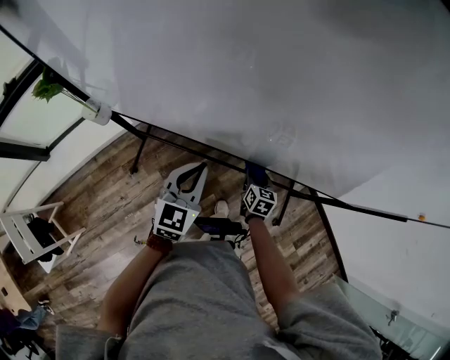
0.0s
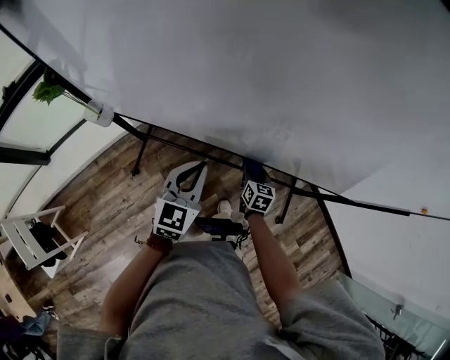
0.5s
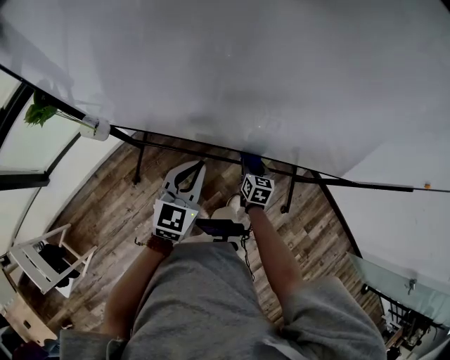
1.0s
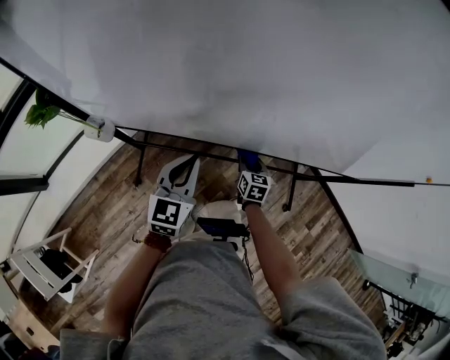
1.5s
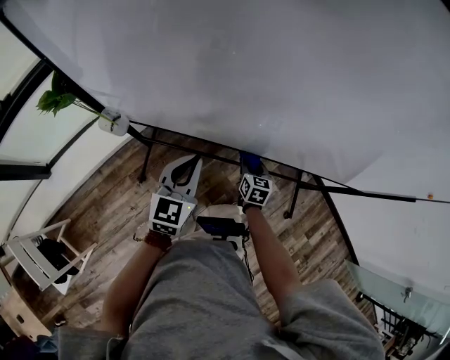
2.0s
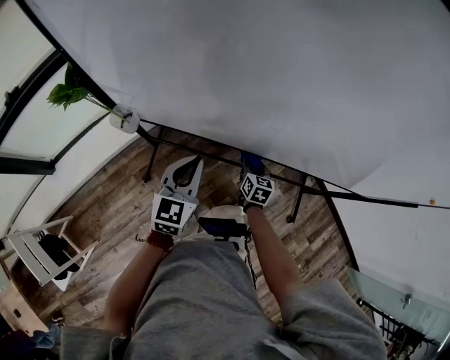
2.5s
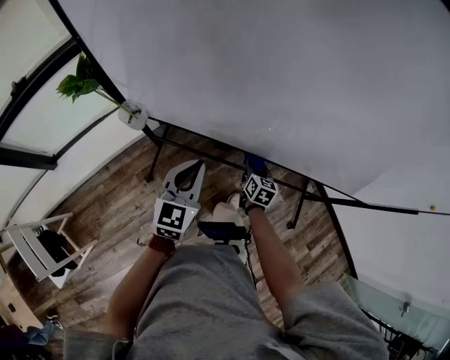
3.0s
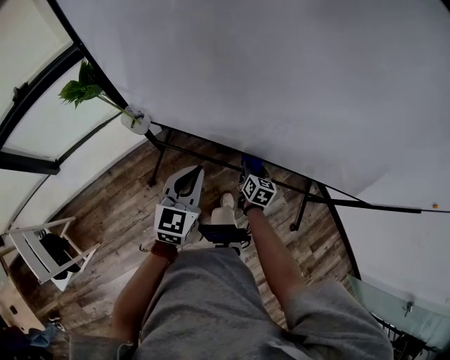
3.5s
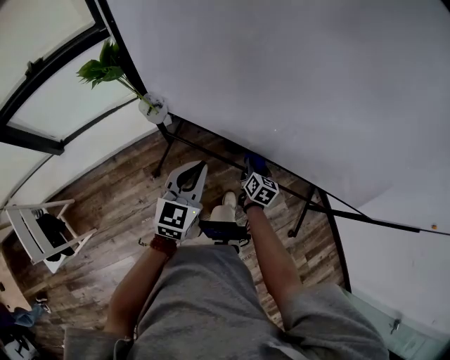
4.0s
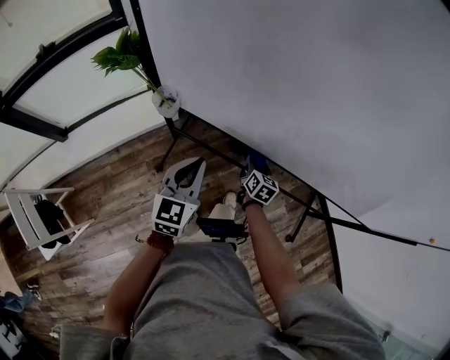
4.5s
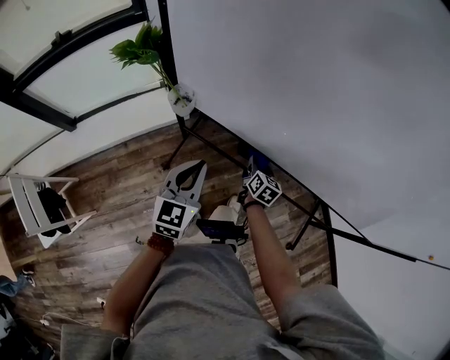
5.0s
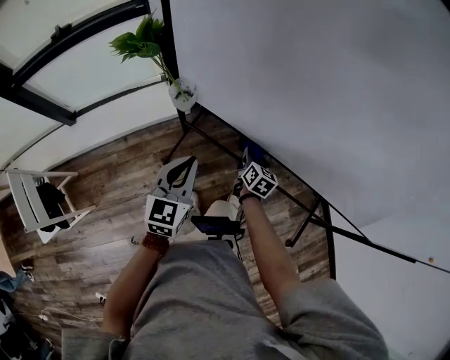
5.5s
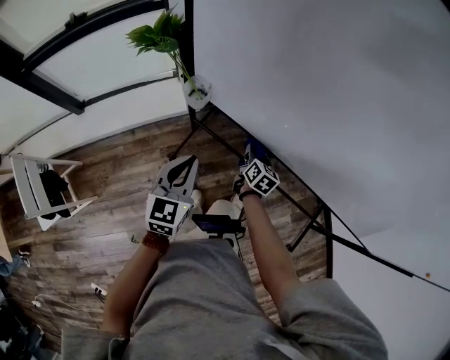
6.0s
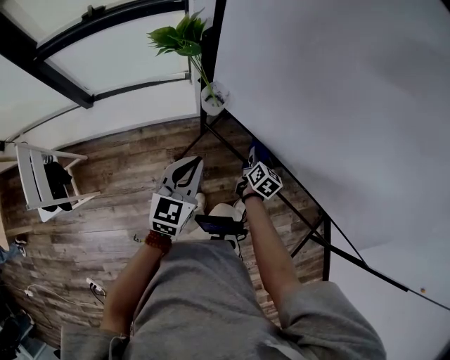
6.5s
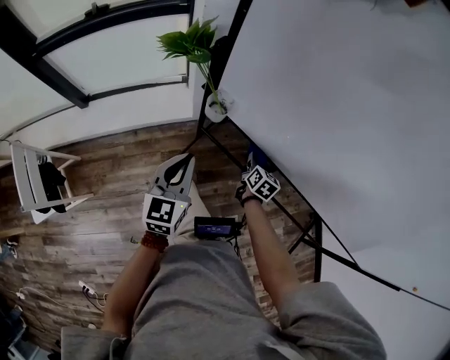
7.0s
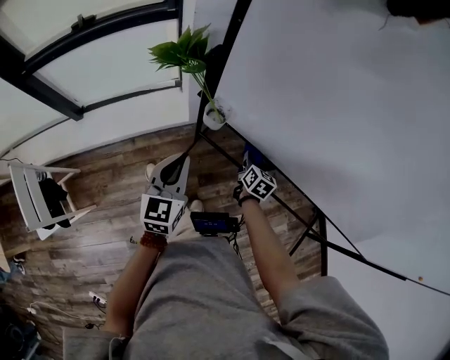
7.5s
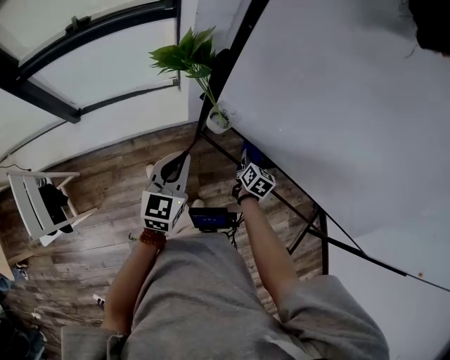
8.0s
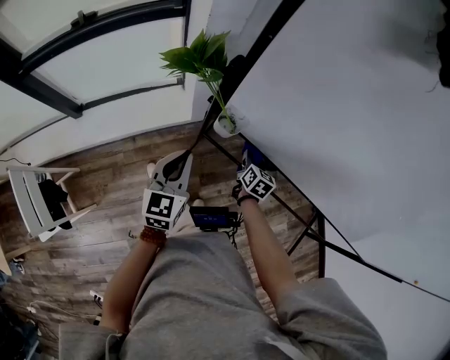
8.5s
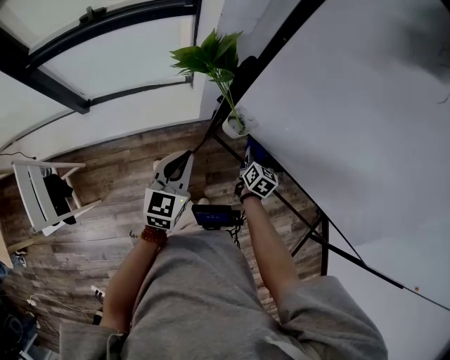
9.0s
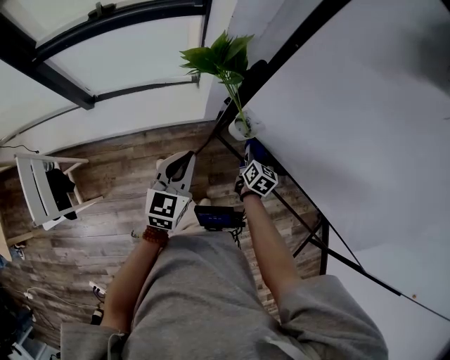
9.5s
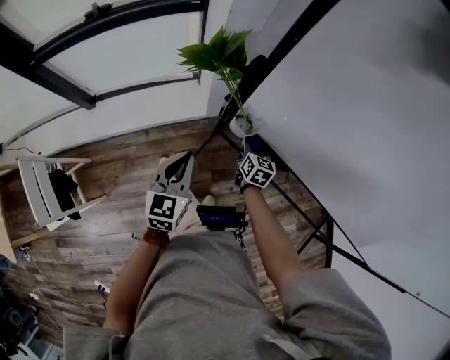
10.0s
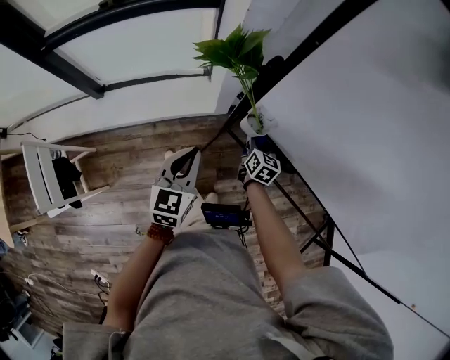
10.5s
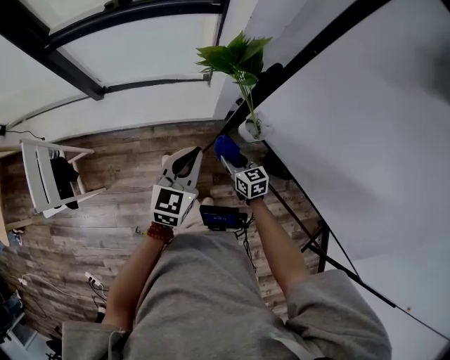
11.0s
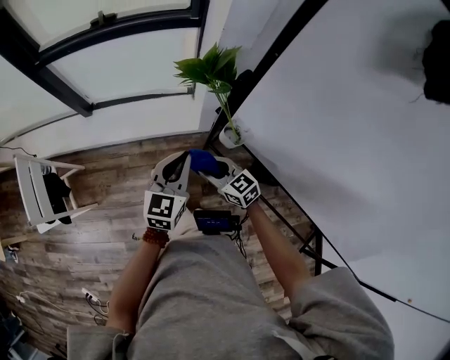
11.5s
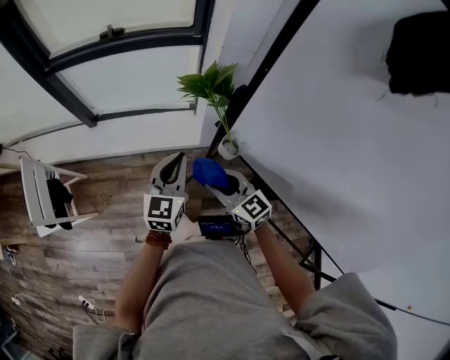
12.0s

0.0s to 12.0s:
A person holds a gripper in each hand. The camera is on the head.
0.0s to 2.0s: The two grippers go approximately 10 cm to the left.
2.0s to 4.0s: Both grippers move to the left, approximately 10 cm.
4.0s to 6.0s: Both grippers travel together to the left, some 10 cm.
6.0s to 8.0s: The left gripper is displaced to the left and forward by roughly 10 cm; the right gripper heads to the left, covering about 10 cm.
8.0s to 10.0s: The right gripper shifts about 10 cm to the left. The left gripper ends up roughly 5 cm from where it was.
10.0s to 12.0s: The right gripper shifts approximately 20 cm upward, and changes its angle by some 60 degrees. Meanwhile the left gripper shifts approximately 5 cm upward.

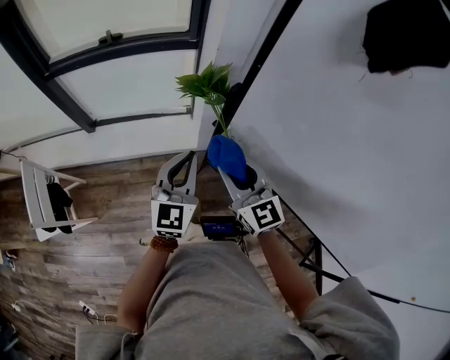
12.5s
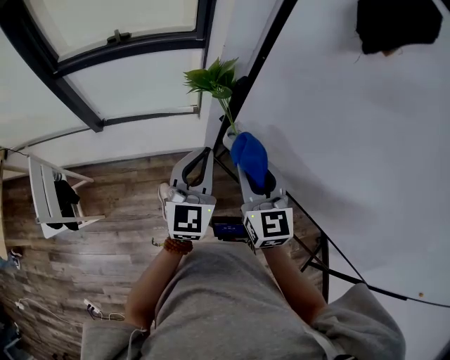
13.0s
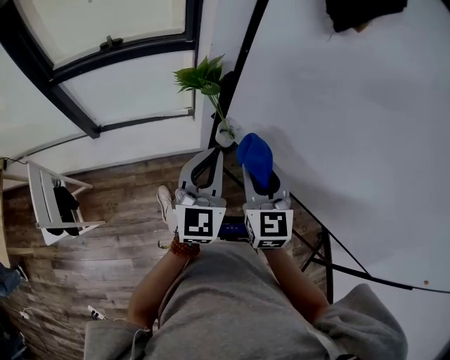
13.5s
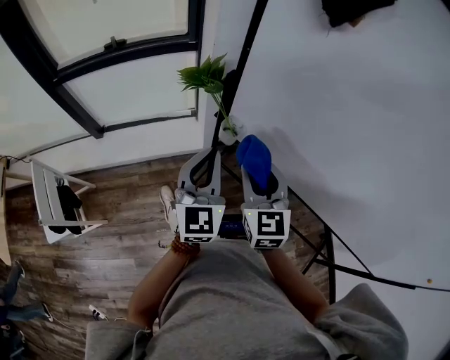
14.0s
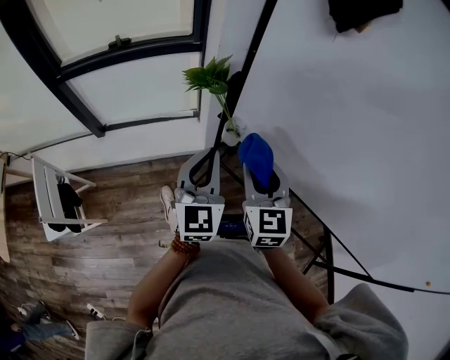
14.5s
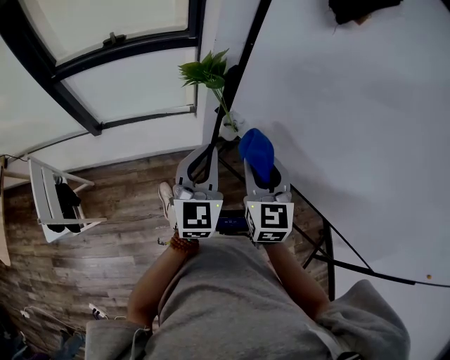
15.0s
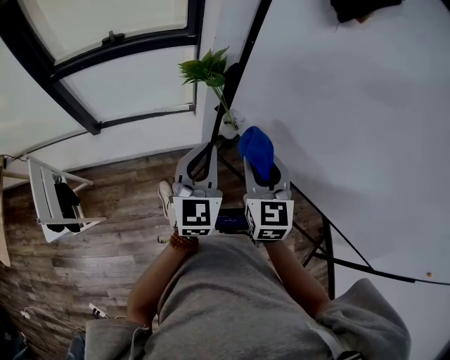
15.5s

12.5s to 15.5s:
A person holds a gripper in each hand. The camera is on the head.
12.5s to 14.0s: The right gripper shifts roughly 10 cm backward and to the right, and changes its angle by some 30 degrees, while the left gripper is displaced backward and upward by approximately 10 cm.
14.0s to 15.5s: The grippers move only a little.

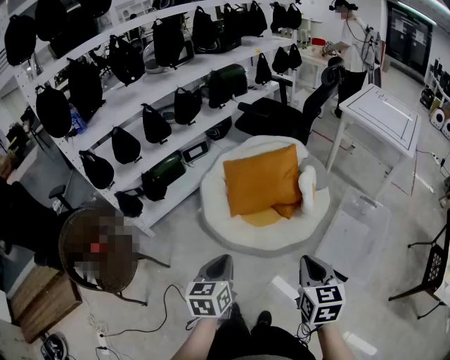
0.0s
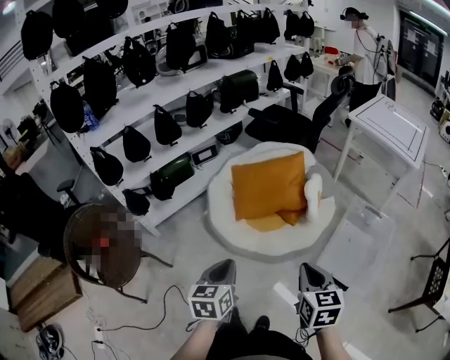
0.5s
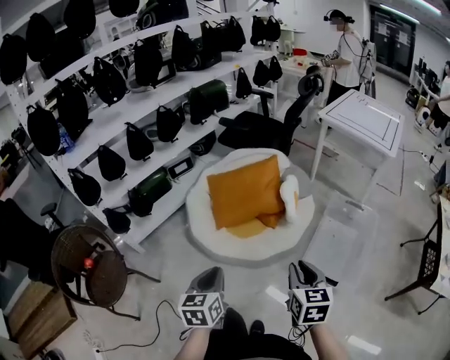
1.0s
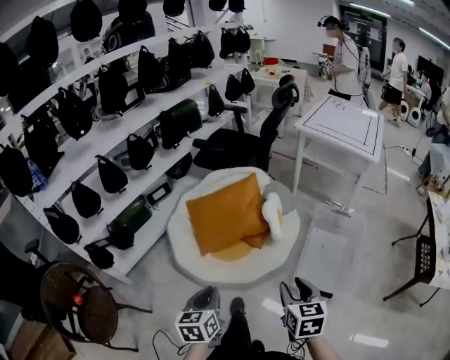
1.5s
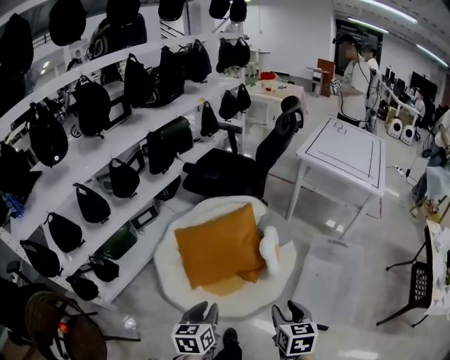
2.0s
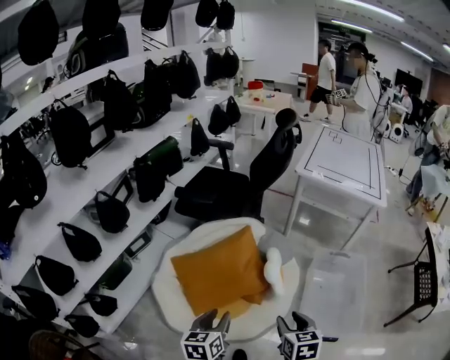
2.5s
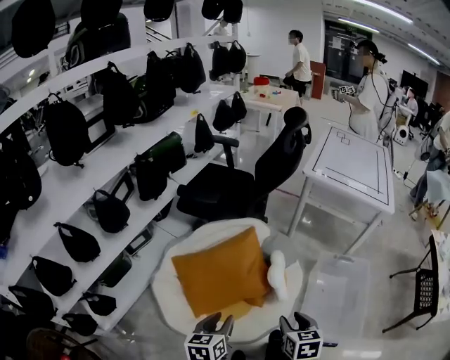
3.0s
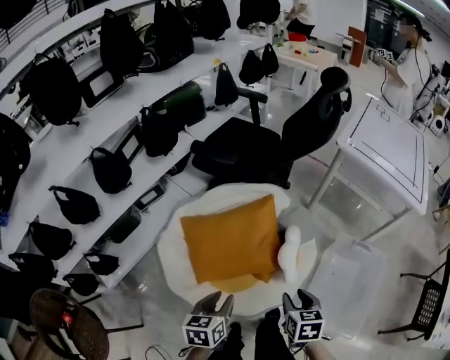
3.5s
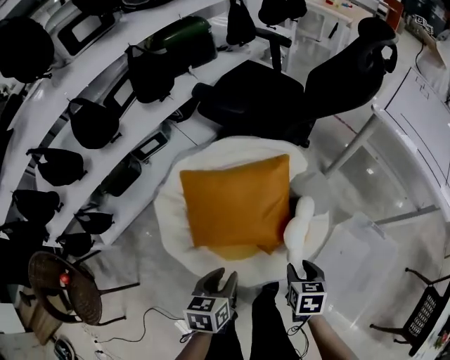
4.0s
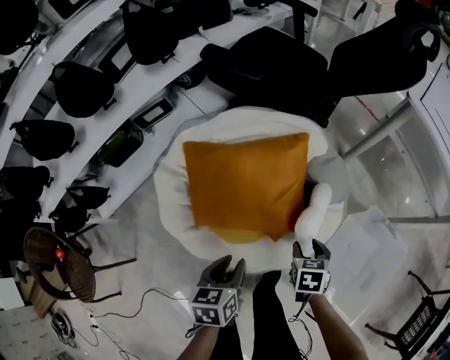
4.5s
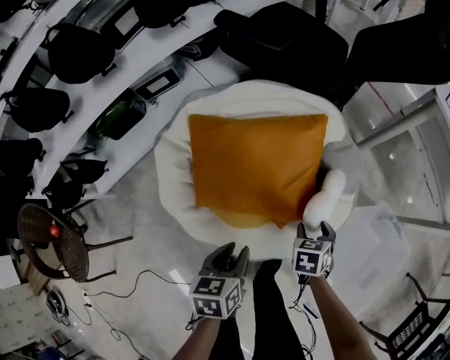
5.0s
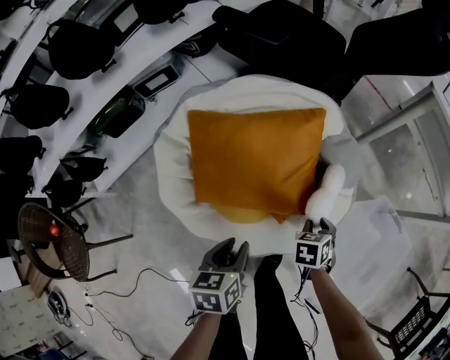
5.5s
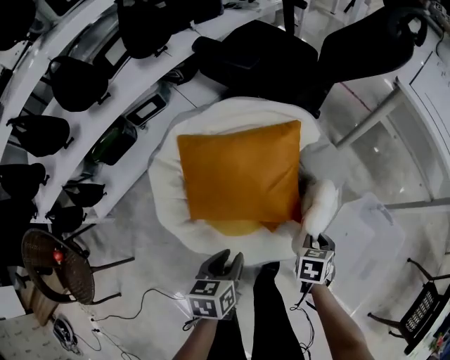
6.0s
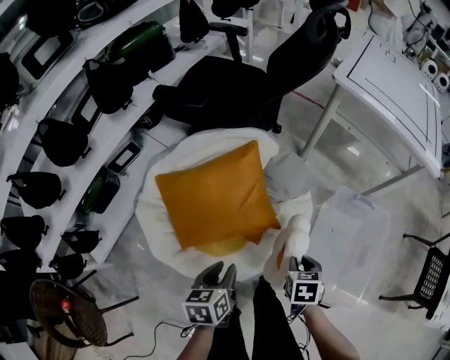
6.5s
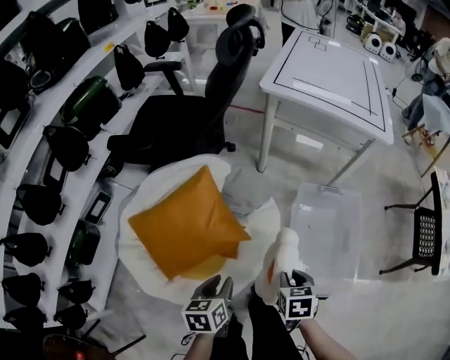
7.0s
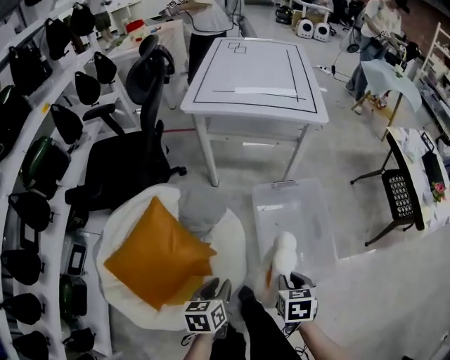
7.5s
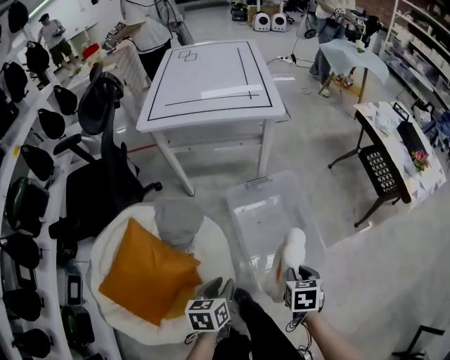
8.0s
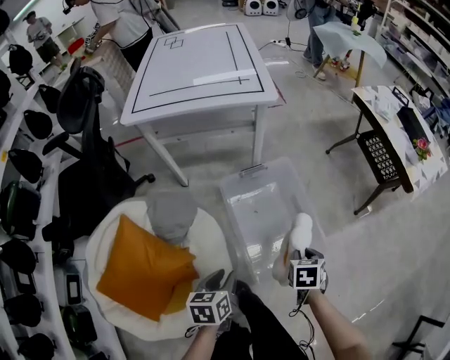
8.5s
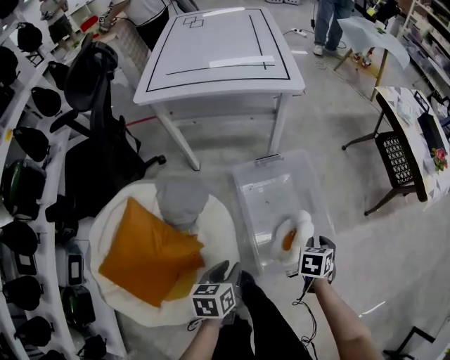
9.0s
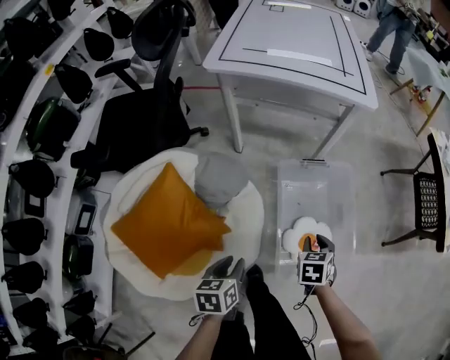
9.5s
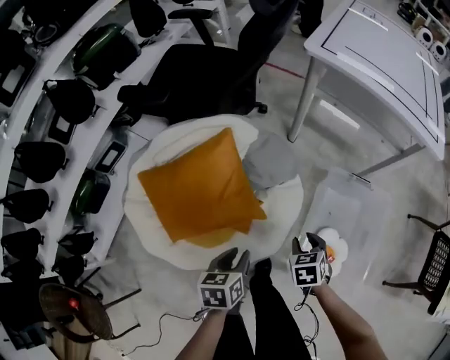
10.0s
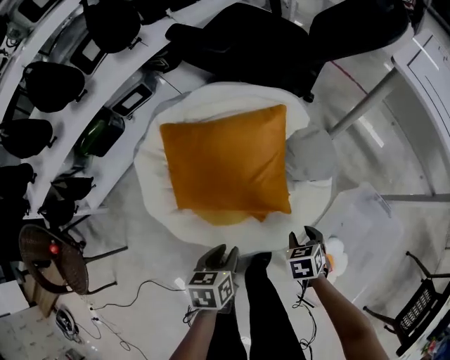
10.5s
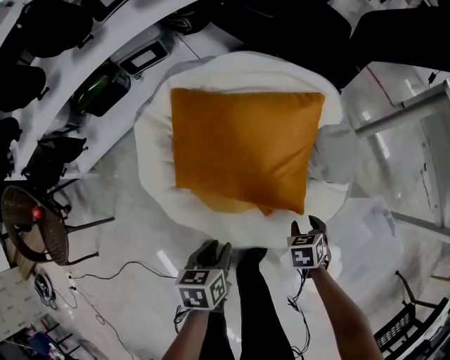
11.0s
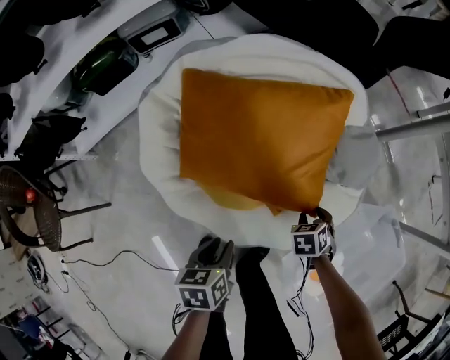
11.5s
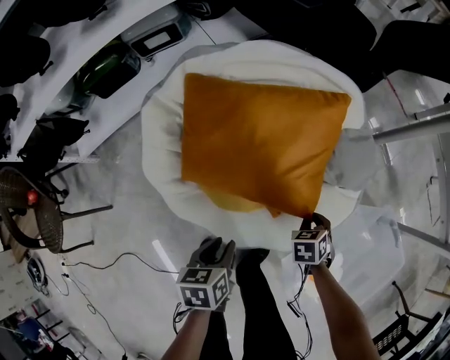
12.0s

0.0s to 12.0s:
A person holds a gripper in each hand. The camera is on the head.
0.0s to 2.0s: The left gripper is displaced forward by roughly 20 cm, while the right gripper goes roughly 20 cm forward and downward, and opens.
2.0s to 4.0s: The grippers both shift forward and downward by about 30 cm. The right gripper swivels some 20 degrees.
4.0s to 6.0s: Both grippers move downward, some 10 cm. The right gripper closes its fingers.
6.0s to 8.0s: The left gripper ends up roughly 35 cm from where it was, and rotates about 50 degrees. Meanwhile the right gripper shifts by approximately 40 cm, and twists approximately 50 degrees clockwise, seen from behind.
8.0s to 10.0s: The right gripper moves some 30 cm, and twists roughly 50 degrees counterclockwise, seen from behind, while the left gripper moves some 20 cm, and swivels roughly 40 degrees.
10.0s to 12.0s: The right gripper travels downward by some 20 cm, changes its angle by roughly 30 degrees, and closes, while the left gripper shifts by roughly 25 cm, and changes its angle by some 30 degrees.
